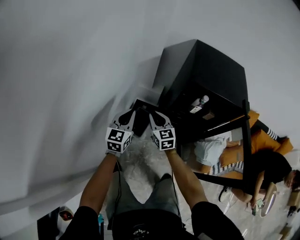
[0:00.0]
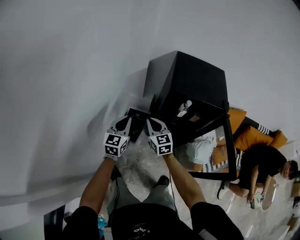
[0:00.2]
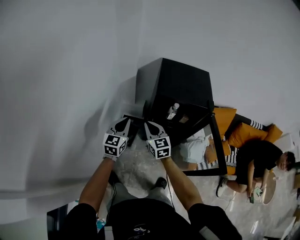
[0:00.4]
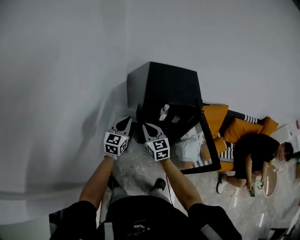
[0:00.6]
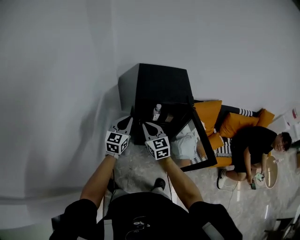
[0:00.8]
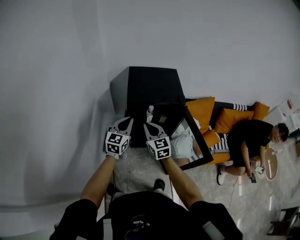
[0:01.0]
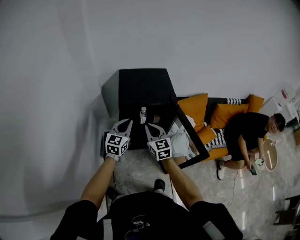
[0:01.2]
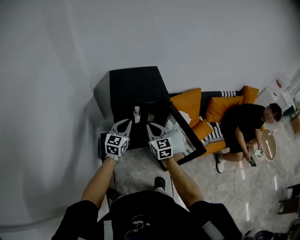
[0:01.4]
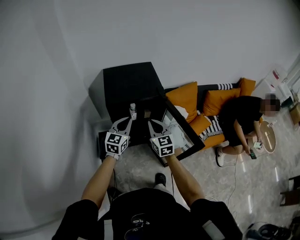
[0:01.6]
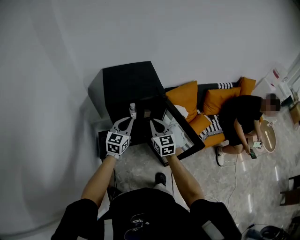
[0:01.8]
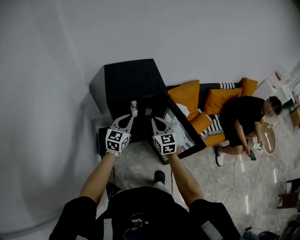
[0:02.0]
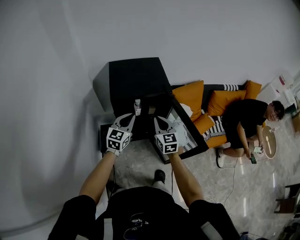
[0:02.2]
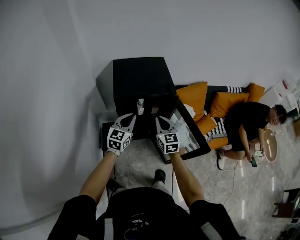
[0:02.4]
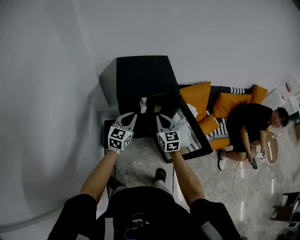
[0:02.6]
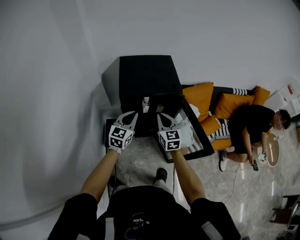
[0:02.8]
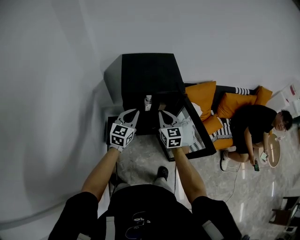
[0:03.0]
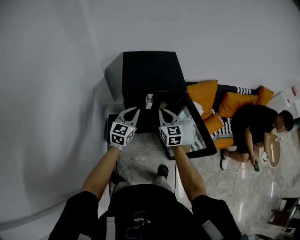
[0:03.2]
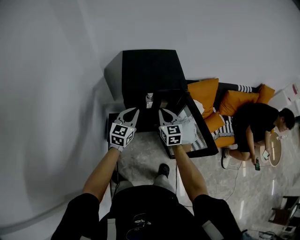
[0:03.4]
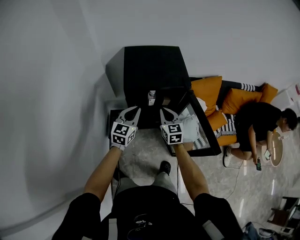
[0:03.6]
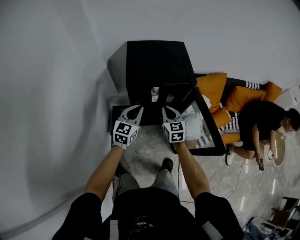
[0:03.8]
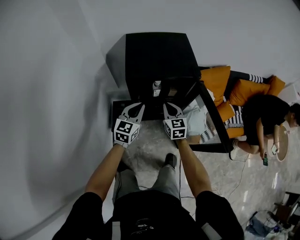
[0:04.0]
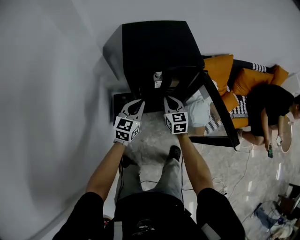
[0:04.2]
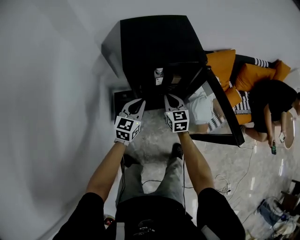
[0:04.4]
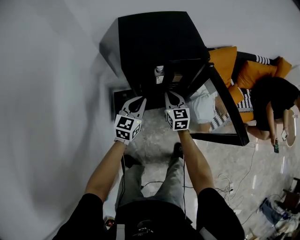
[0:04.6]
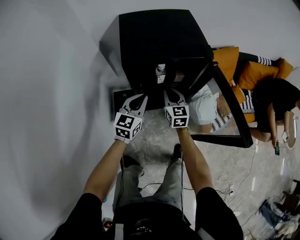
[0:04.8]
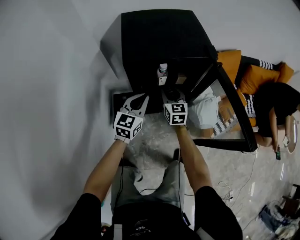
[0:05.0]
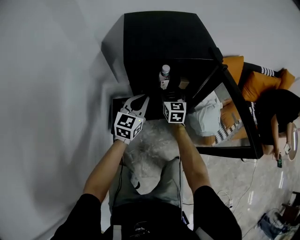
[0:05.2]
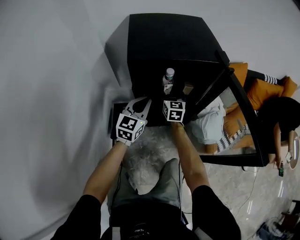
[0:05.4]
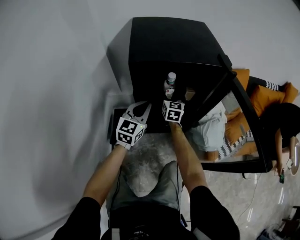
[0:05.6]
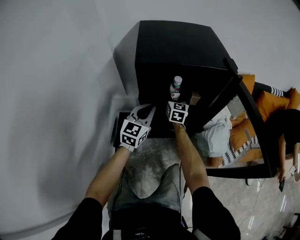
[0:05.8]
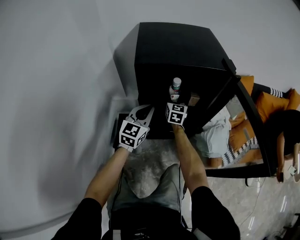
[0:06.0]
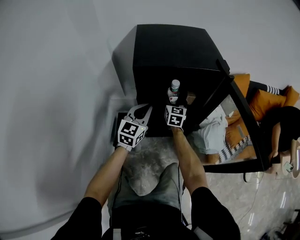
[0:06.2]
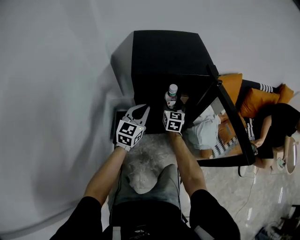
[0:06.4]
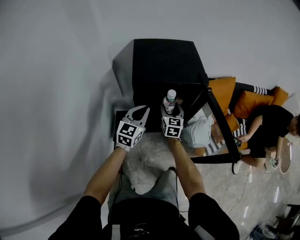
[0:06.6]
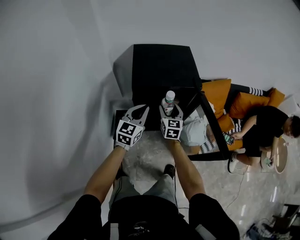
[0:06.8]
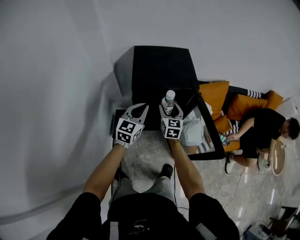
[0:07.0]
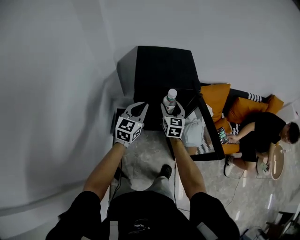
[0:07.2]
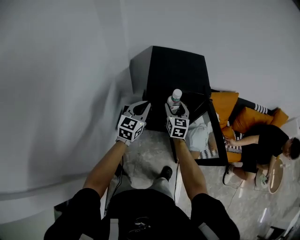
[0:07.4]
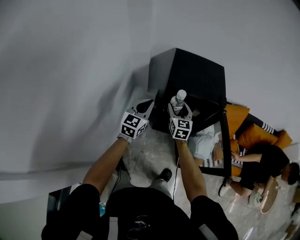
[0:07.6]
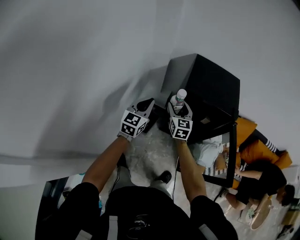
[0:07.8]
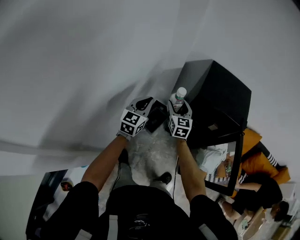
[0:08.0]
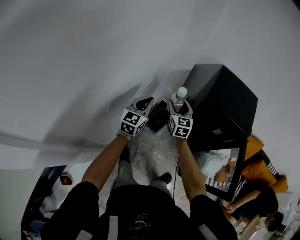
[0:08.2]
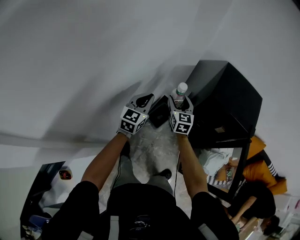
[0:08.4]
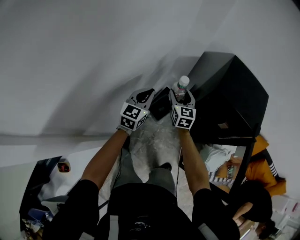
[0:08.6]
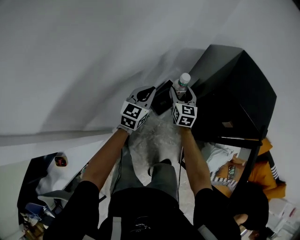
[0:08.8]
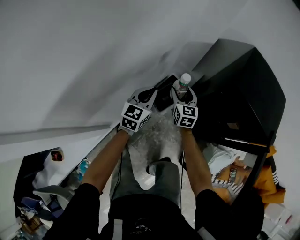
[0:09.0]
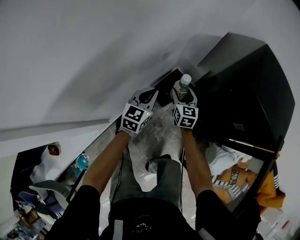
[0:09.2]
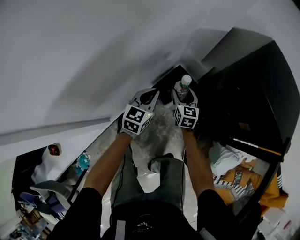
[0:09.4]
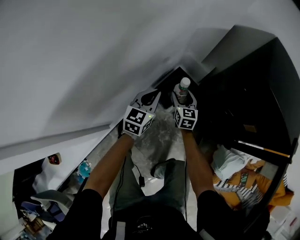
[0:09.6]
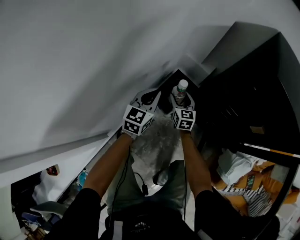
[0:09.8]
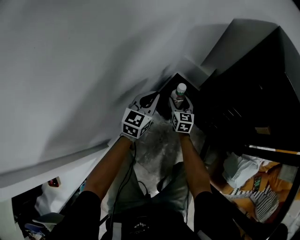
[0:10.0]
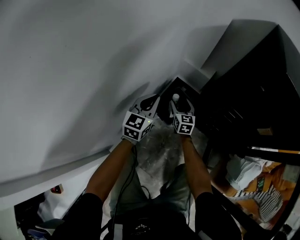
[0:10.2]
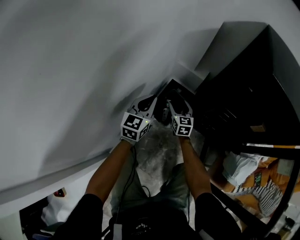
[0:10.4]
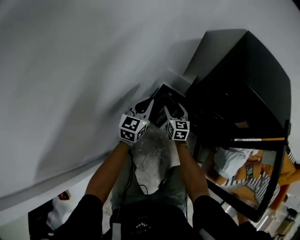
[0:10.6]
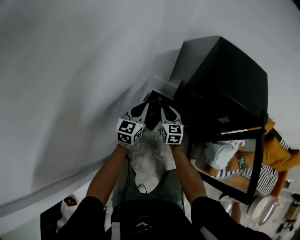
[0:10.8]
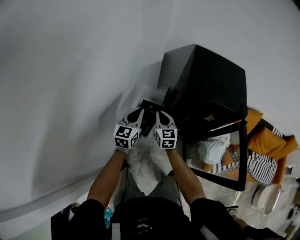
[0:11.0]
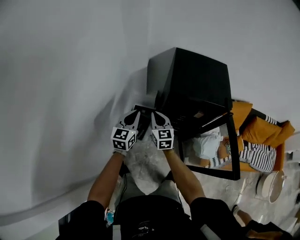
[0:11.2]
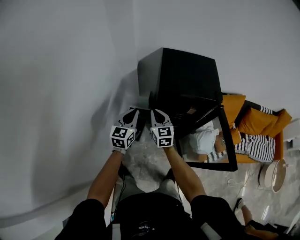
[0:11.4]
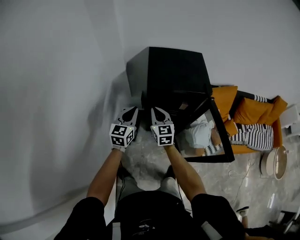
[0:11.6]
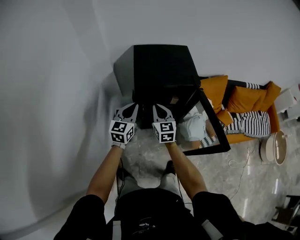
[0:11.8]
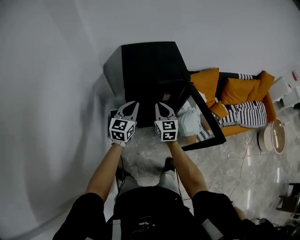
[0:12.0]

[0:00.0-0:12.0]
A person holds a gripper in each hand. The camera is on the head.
0.0 to 1.6 s: The right gripper ends up approximately 40 cm from where it was, and rotates roughly 30 degrees; the left gripper changes place by some 40 cm, and swivels roughly 30 degrees.
1.6 to 3.0 s: The right gripper ends up approximately 5 cm from where it was. The left gripper changes place by roughly 5 cm.
3.0 to 4.4 s: Both grippers travel together downward, some 15 cm.
4.4 to 6.0 s: The left gripper shifts roughly 15 cm downward and forward; the right gripper moves forward and downward, approximately 20 cm, and opens its fingers.
6.0 to 7.6 s: Both grippers travel together upward and backward, roughly 30 cm.
7.6 to 9.0 s: The left gripper heads downward, covering some 20 cm, and changes its angle by some 30 degrees; the right gripper moves approximately 30 cm, and rotates roughly 30 degrees.
9.0 to 10.4 s: Both grippers travel together downward, approximately 25 cm.
10.4 to 12.0 s: Both grippers move upward, approximately 40 cm. The right gripper swivels about 40 degrees, and closes up; the left gripper changes its angle by about 40 degrees.

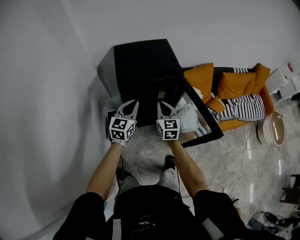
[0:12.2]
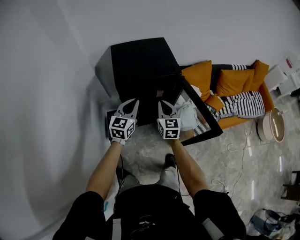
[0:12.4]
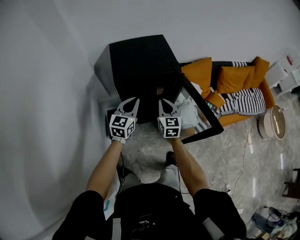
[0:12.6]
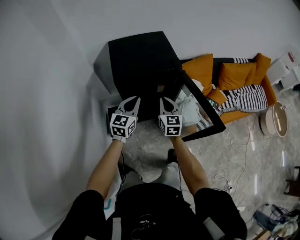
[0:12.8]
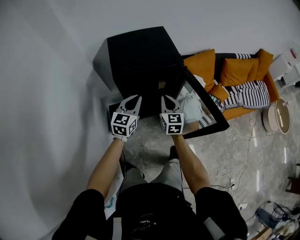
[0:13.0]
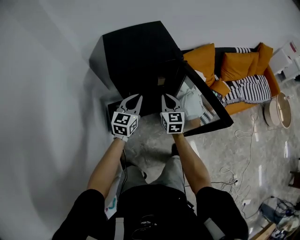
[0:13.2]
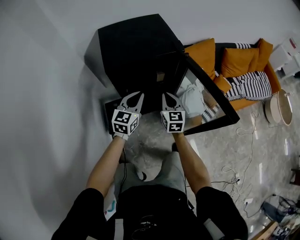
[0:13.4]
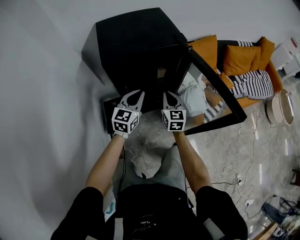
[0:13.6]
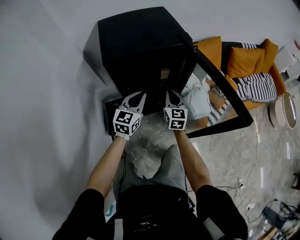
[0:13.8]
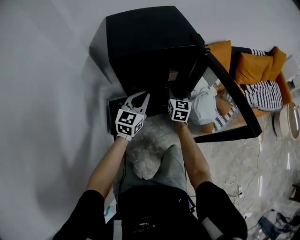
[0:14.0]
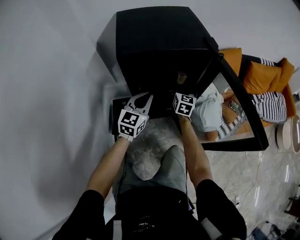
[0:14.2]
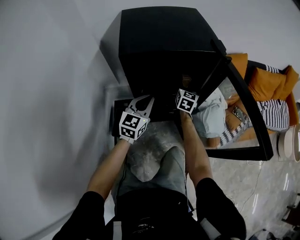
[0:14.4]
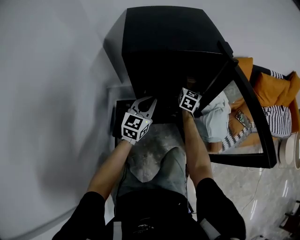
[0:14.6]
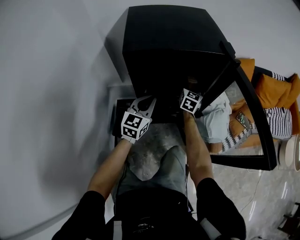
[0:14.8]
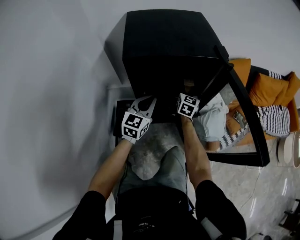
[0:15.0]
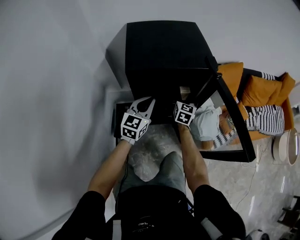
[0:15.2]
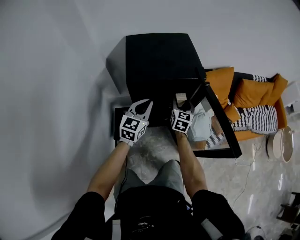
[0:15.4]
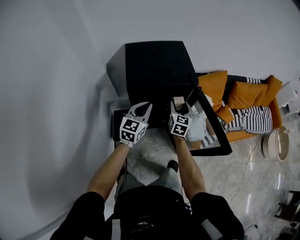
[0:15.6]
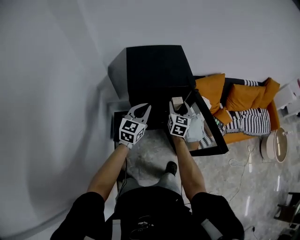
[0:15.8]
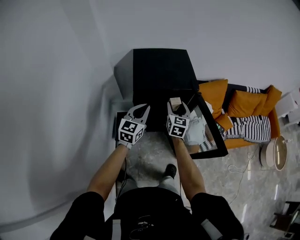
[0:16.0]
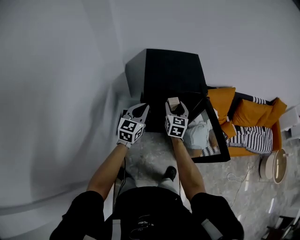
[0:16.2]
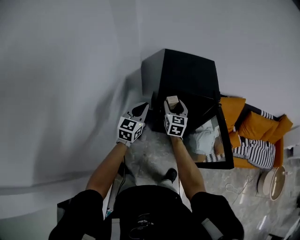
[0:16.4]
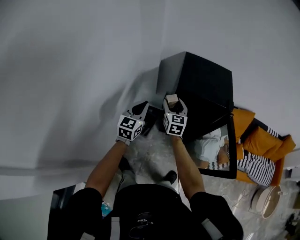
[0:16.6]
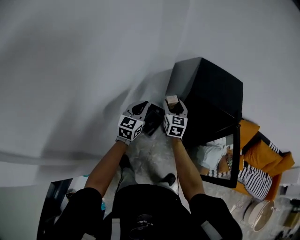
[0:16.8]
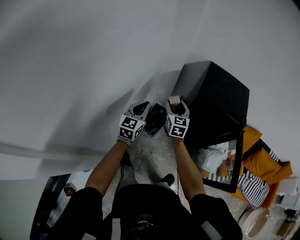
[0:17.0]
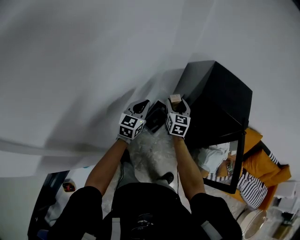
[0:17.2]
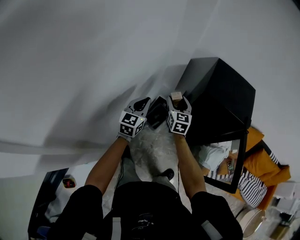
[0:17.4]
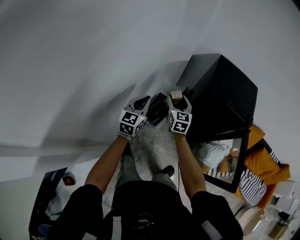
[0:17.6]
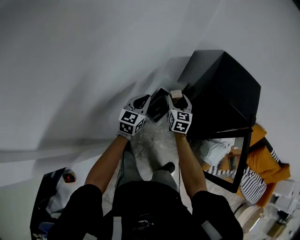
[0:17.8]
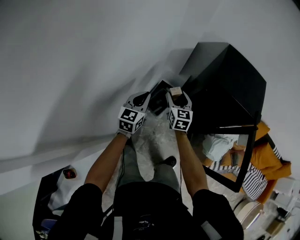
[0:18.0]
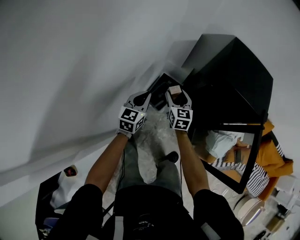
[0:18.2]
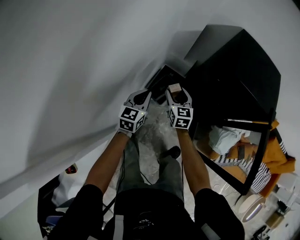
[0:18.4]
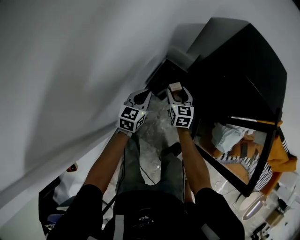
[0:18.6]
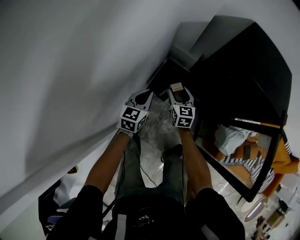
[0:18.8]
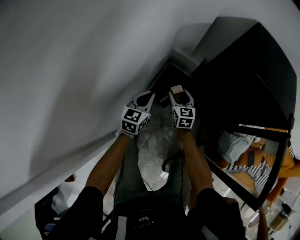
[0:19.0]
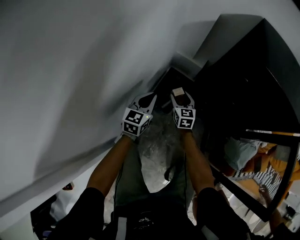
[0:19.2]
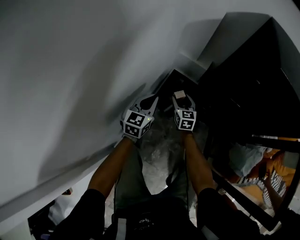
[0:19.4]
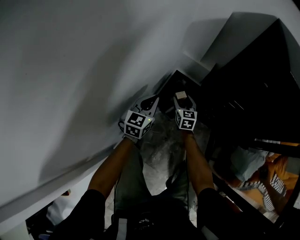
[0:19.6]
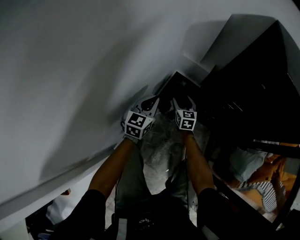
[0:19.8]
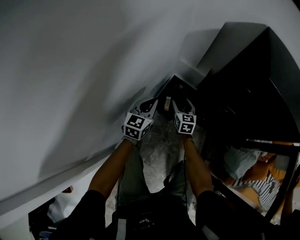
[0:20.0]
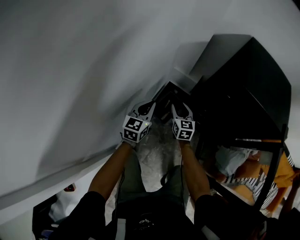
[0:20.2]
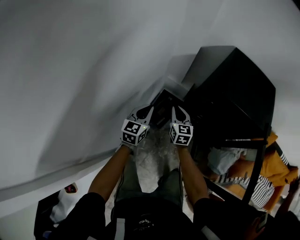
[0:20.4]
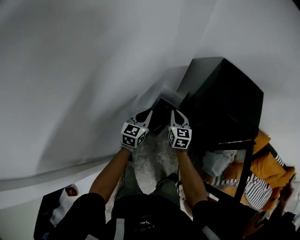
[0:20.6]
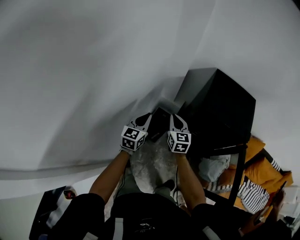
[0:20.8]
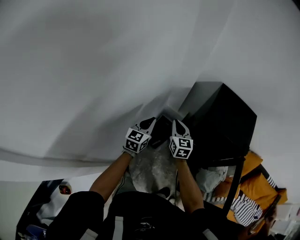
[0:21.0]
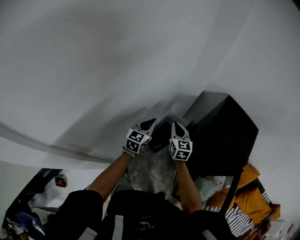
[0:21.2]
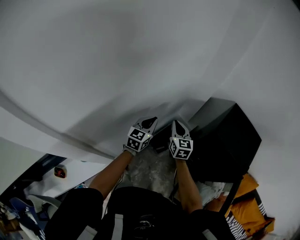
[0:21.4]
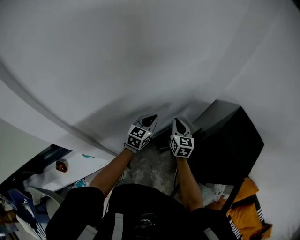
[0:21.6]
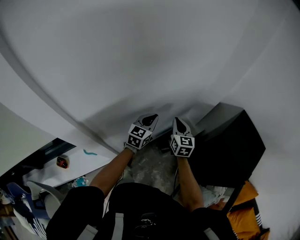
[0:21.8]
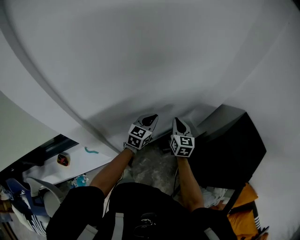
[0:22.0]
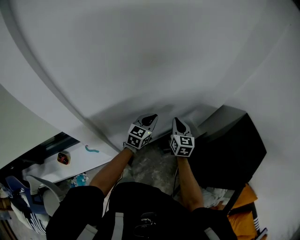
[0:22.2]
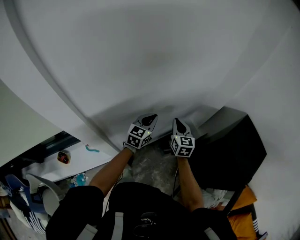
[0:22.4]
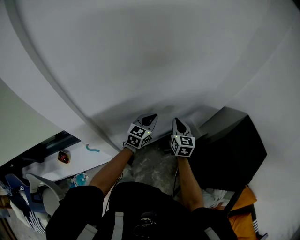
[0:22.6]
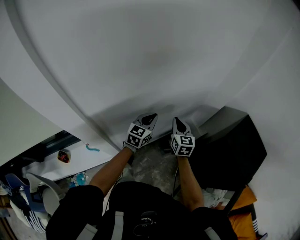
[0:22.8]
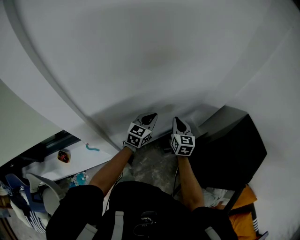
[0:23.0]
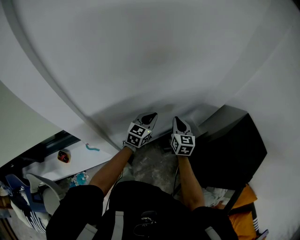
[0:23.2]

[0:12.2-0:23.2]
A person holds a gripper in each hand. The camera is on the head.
12.2 to 13.8 s: The grippers both shift downward by about 20 cm.
13.8 to 15.4 s: The left gripper goes about 10 cm upward; the right gripper is displaced forward and upward by approximately 10 cm, and opens up.
15.4 to 17.0 s: The right gripper moves about 40 cm, and rotates some 40 degrees. The left gripper shifts by approximately 35 cm, and turns by some 40 degrees.
17.0 to 18.4 s: Both grippers move downward, about 20 cm.
18.4 to 20.0 s: The grippers both shift downward by approximately 20 cm.
20.0 to 21.6 s: The two grippers go about 40 cm upward. The right gripper turns by approximately 30 degrees, and closes its fingers.
21.6 to 23.2 s: Both grippers move to the left, approximately 5 cm.

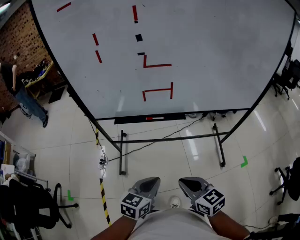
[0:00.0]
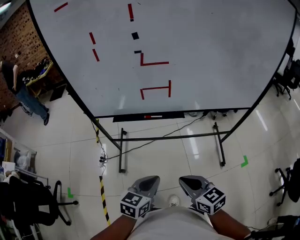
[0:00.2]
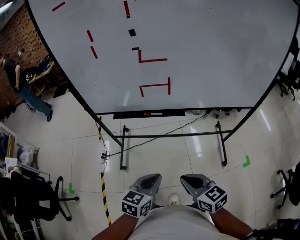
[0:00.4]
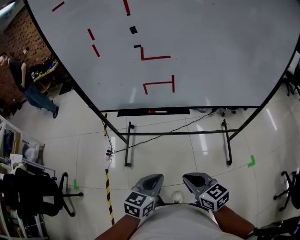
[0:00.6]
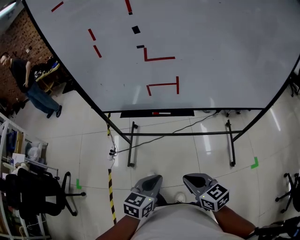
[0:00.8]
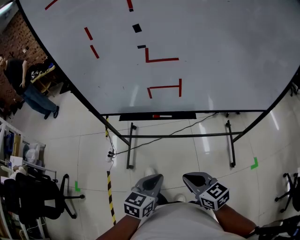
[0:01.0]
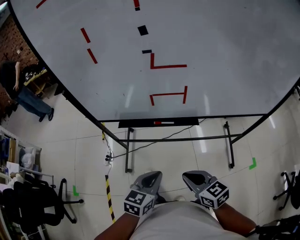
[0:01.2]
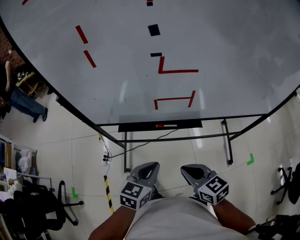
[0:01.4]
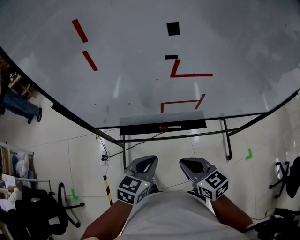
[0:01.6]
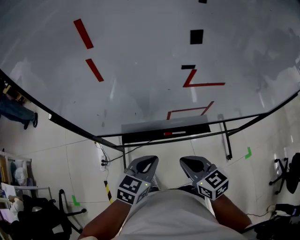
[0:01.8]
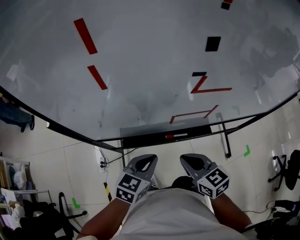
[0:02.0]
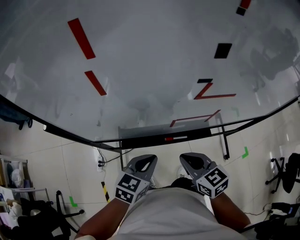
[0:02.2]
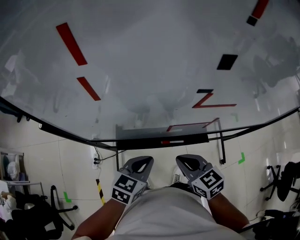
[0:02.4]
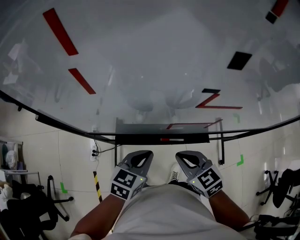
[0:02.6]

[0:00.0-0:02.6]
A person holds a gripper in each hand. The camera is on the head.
0.0 to 1.2 s: The two grippers go about 10 cm forward.
1.2 to 2.6 s: The right gripper shifts approximately 25 cm forward and to the left. Meanwhile the left gripper heads forward, covering some 20 cm.
